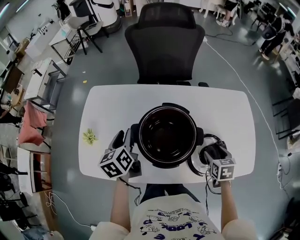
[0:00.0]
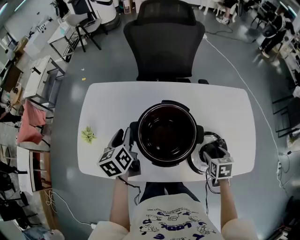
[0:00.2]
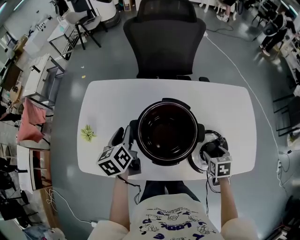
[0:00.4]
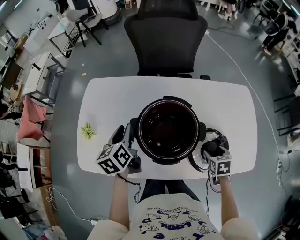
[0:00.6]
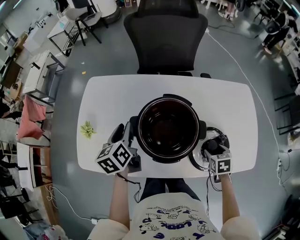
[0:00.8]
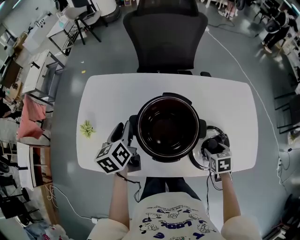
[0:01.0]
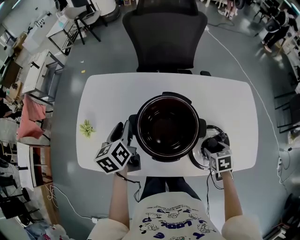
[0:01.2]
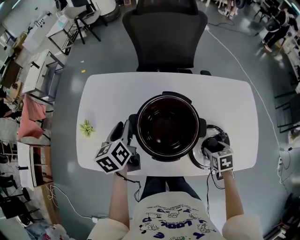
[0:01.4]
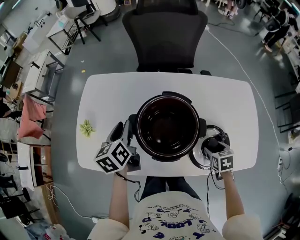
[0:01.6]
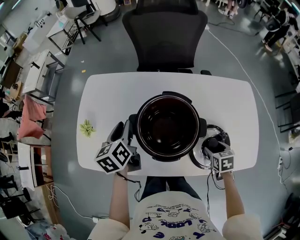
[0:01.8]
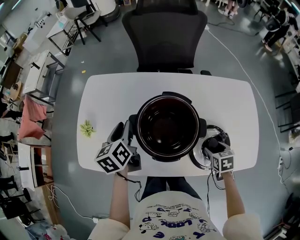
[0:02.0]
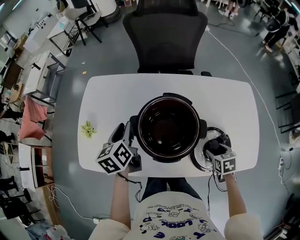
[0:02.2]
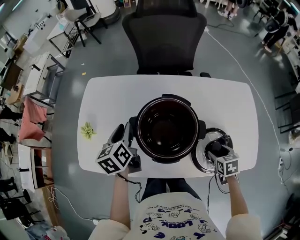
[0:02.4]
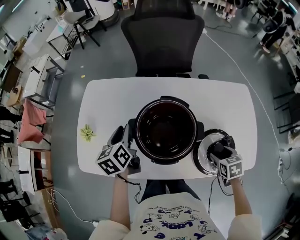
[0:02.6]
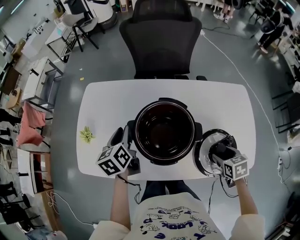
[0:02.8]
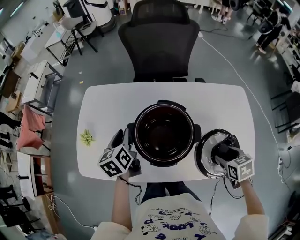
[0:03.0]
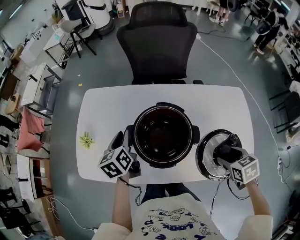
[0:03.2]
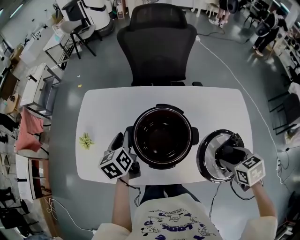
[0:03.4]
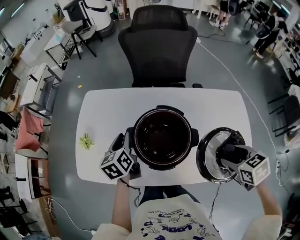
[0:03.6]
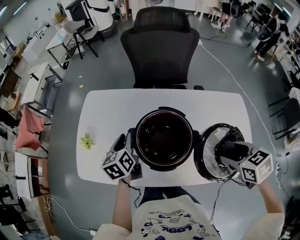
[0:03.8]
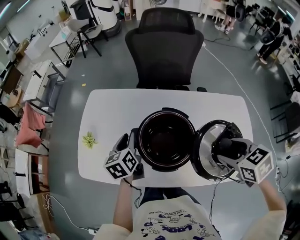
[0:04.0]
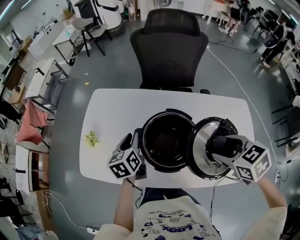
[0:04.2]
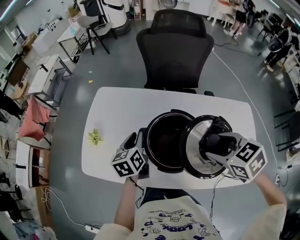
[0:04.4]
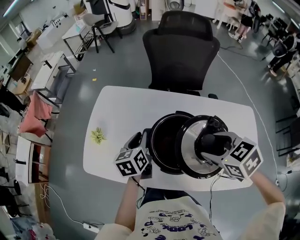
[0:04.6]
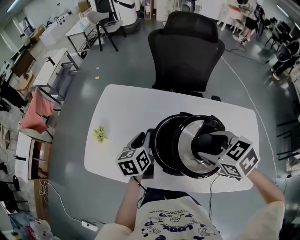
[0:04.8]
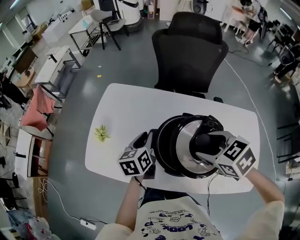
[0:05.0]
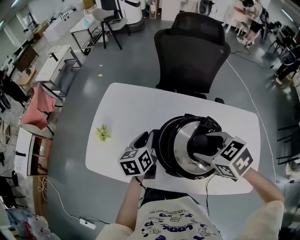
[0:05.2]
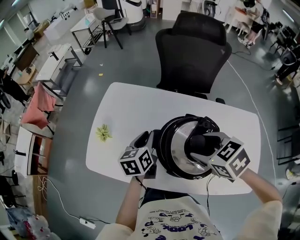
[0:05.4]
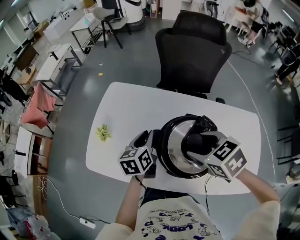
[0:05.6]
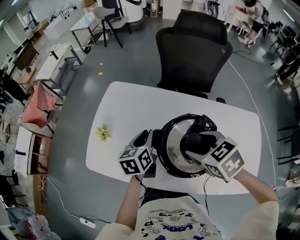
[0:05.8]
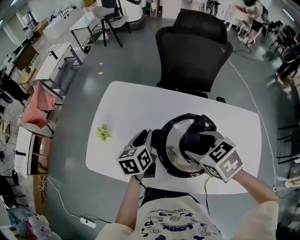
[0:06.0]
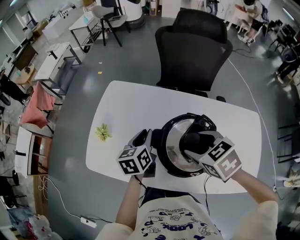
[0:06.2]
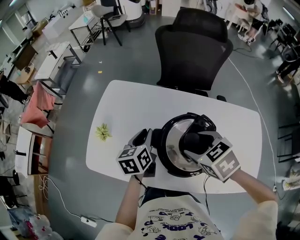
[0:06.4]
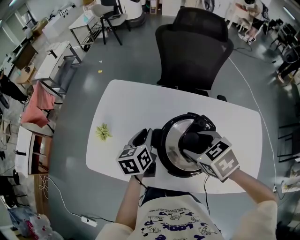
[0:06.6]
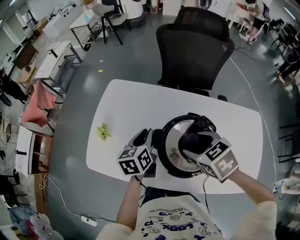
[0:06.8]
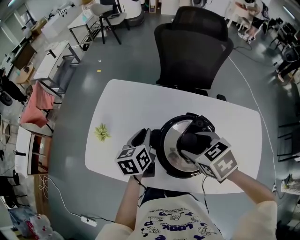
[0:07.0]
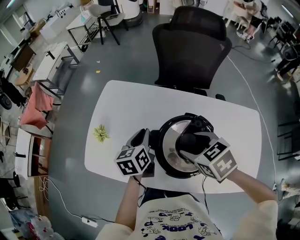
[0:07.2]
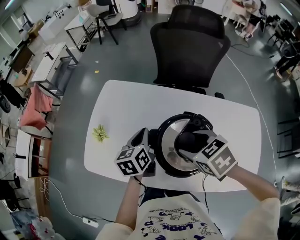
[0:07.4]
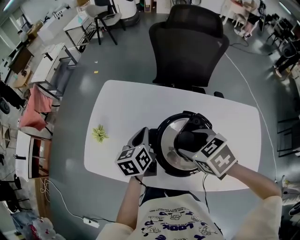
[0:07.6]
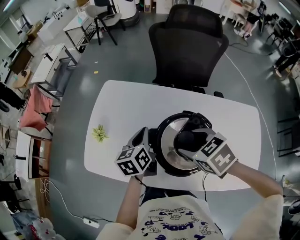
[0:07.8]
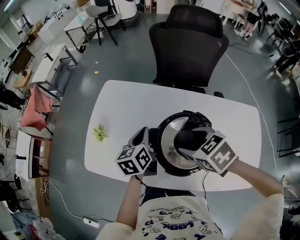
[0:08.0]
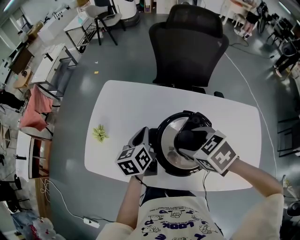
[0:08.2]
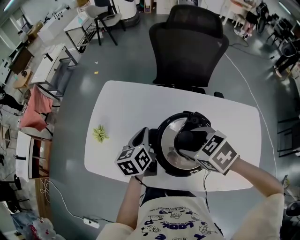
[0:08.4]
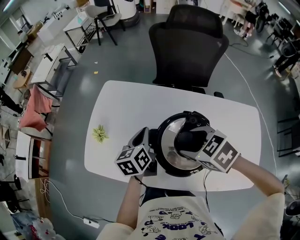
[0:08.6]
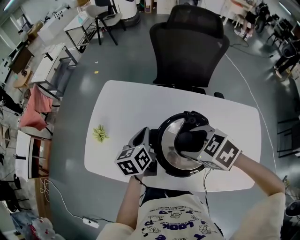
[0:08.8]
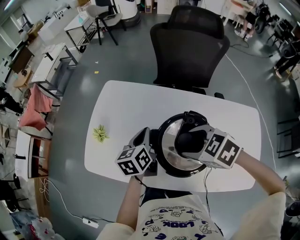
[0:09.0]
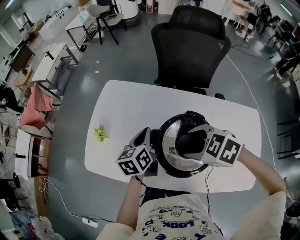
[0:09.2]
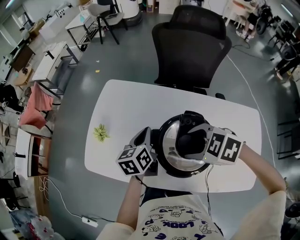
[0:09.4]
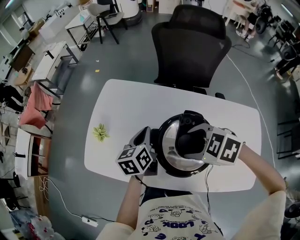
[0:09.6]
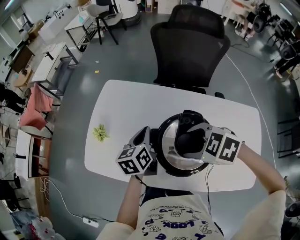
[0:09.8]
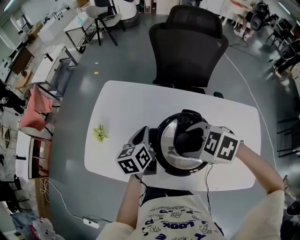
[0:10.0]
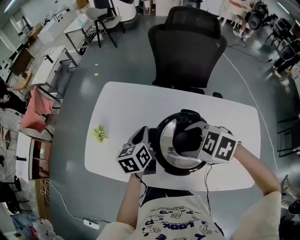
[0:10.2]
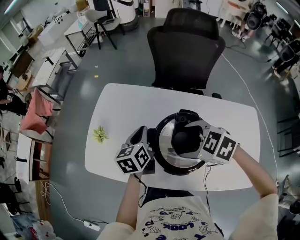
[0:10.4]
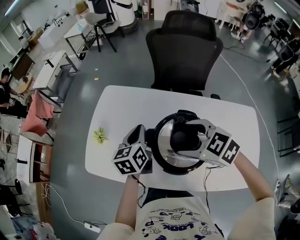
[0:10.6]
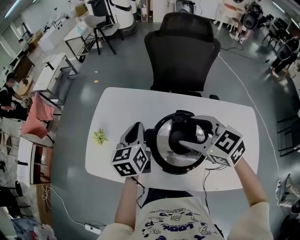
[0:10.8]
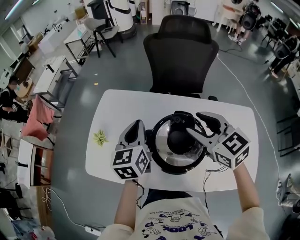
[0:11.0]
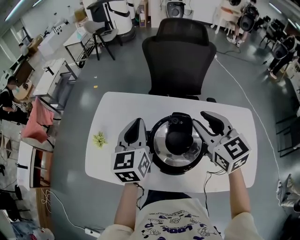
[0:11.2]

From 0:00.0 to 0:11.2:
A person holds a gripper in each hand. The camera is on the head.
From 0:00.0 to 0:01.6: The right gripper travels downward by roughly 5 cm.
From 0:01.6 to 0:03.2: The right gripper is displaced upward by about 15 cm.
From 0:03.2 to 0:04.8: The right gripper shifts some 25 cm to the left, forward and upward, and turns by about 30 degrees.
From 0:04.8 to 0:06.4: The right gripper moves roughly 5 cm.
From 0:06.4 to 0:08.0: Neither gripper changes place.
From 0:08.0 to 0:09.6: The right gripper swivels about 30 degrees.
From 0:09.6 to 0:11.2: The left gripper goes about 15 cm upward, and swivels about 30 degrees. The right gripper goes roughly 15 cm upward and to the right, angles its fingers upward, by roughly 40 degrees, and closes up.

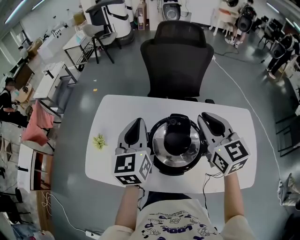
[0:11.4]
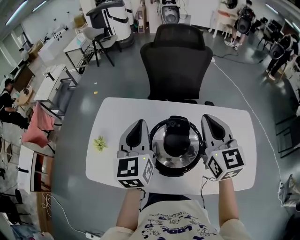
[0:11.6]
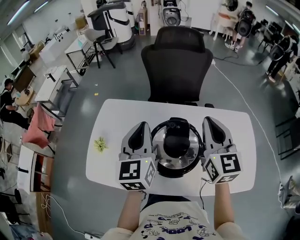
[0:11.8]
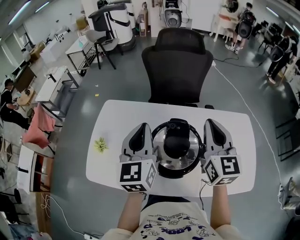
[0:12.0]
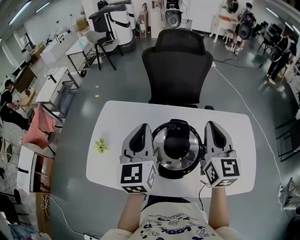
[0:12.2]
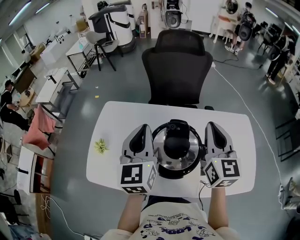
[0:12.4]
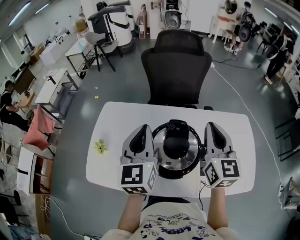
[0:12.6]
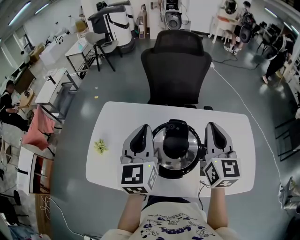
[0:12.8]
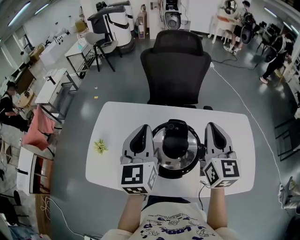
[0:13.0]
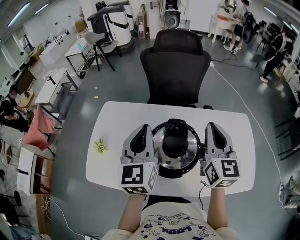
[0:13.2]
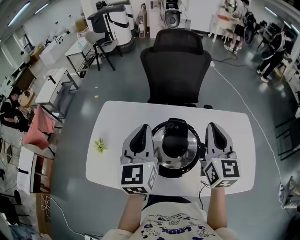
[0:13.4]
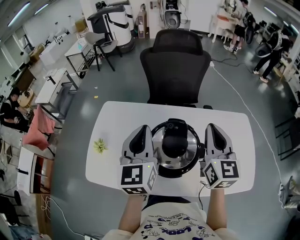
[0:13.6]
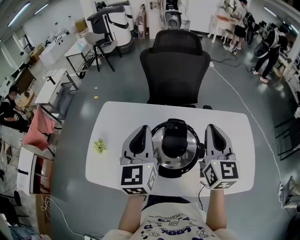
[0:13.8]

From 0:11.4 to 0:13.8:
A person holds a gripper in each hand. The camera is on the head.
From 0:11.4 to 0:12.6: The left gripper changes place by roughly 5 cm; the right gripper moves roughly 5 cm, and changes its angle by approximately 20 degrees.
From 0:12.6 to 0:13.8: The grippers make only small movements.

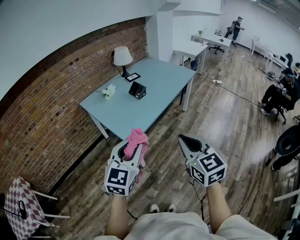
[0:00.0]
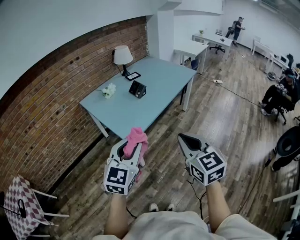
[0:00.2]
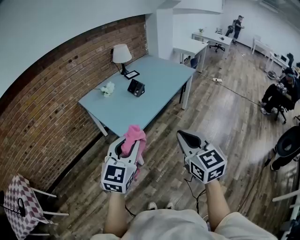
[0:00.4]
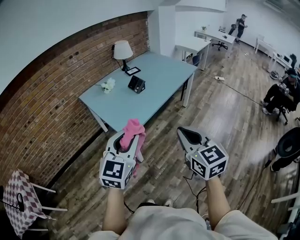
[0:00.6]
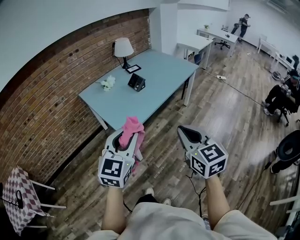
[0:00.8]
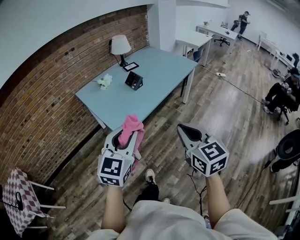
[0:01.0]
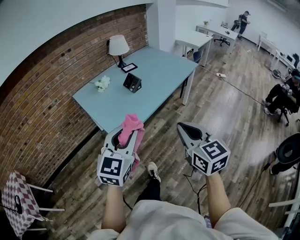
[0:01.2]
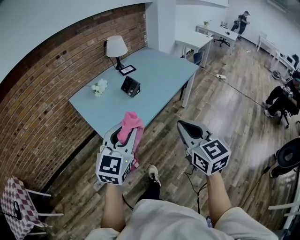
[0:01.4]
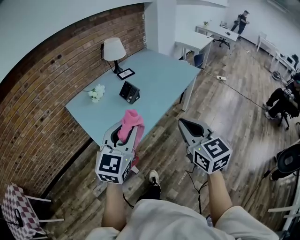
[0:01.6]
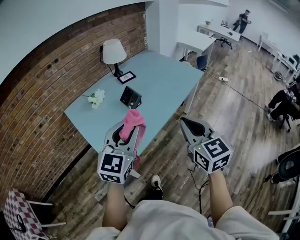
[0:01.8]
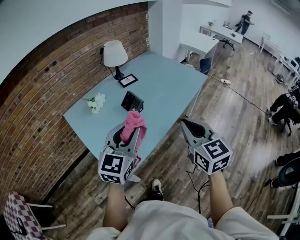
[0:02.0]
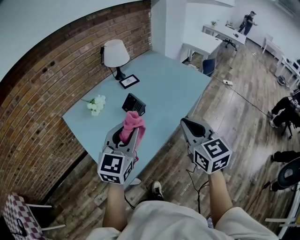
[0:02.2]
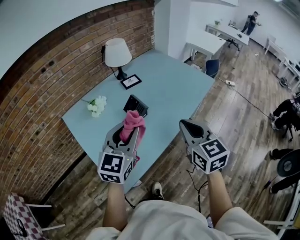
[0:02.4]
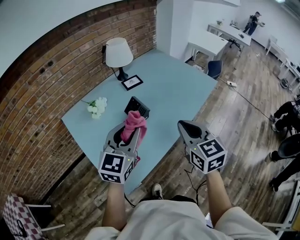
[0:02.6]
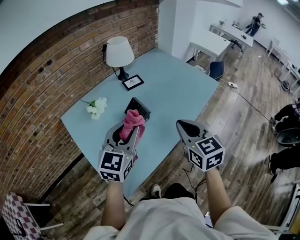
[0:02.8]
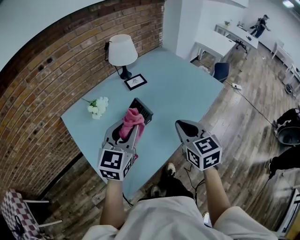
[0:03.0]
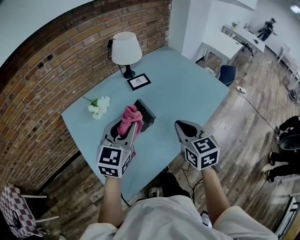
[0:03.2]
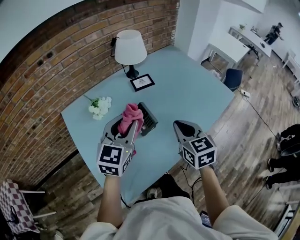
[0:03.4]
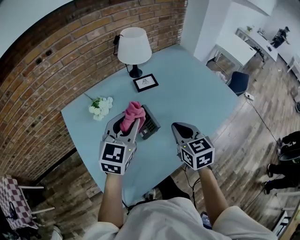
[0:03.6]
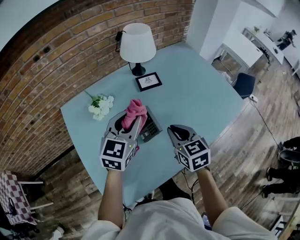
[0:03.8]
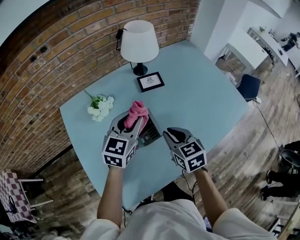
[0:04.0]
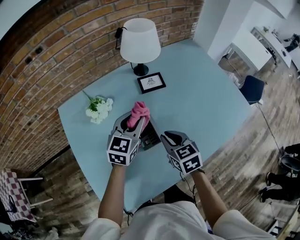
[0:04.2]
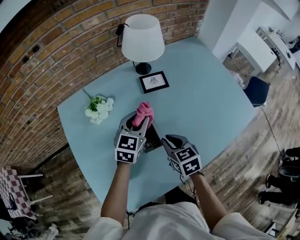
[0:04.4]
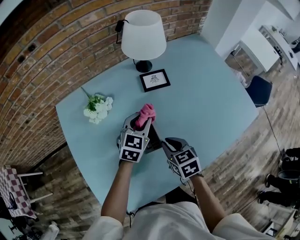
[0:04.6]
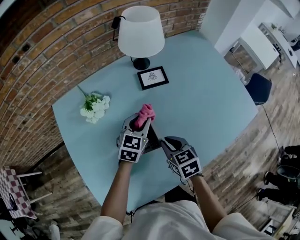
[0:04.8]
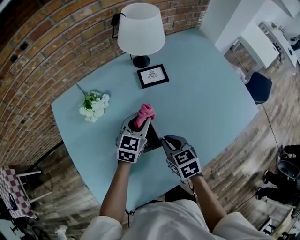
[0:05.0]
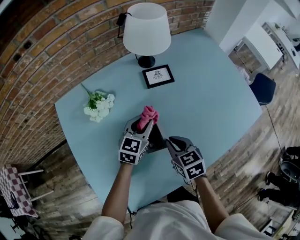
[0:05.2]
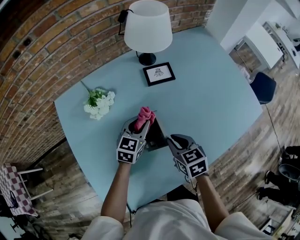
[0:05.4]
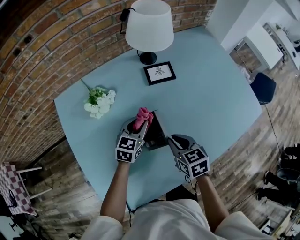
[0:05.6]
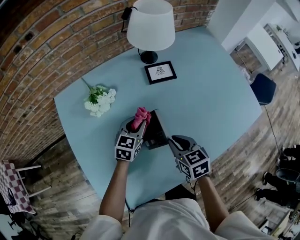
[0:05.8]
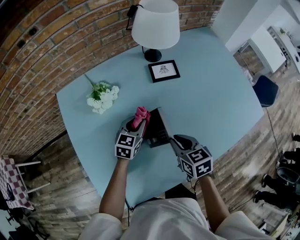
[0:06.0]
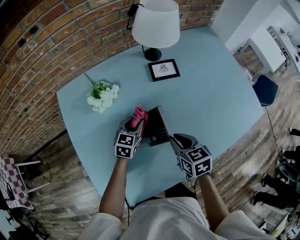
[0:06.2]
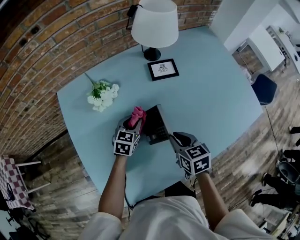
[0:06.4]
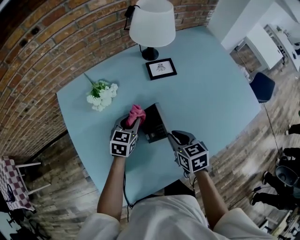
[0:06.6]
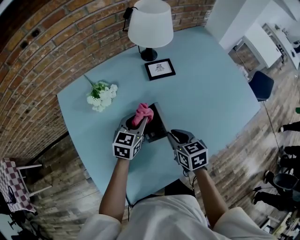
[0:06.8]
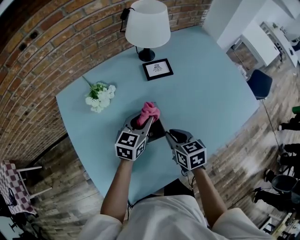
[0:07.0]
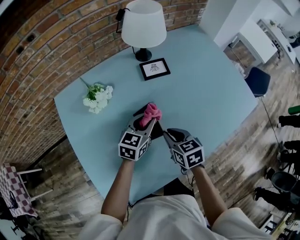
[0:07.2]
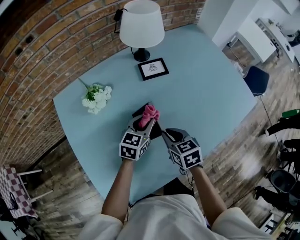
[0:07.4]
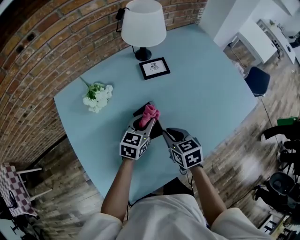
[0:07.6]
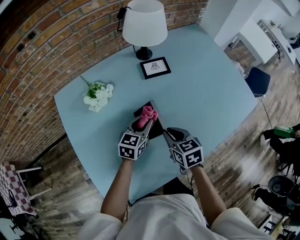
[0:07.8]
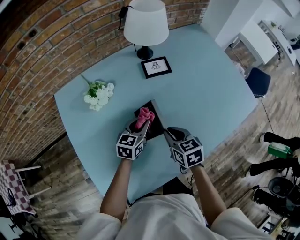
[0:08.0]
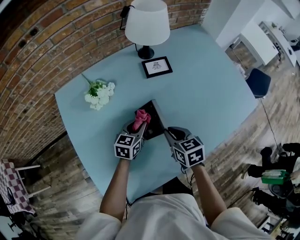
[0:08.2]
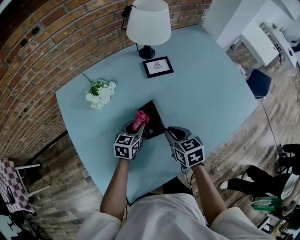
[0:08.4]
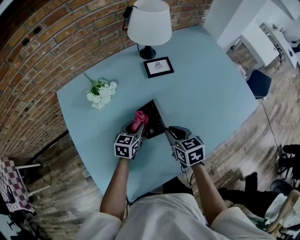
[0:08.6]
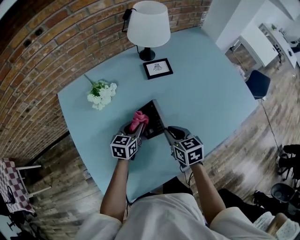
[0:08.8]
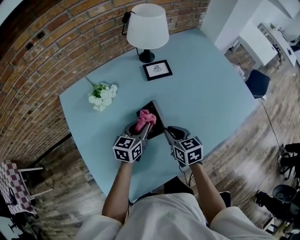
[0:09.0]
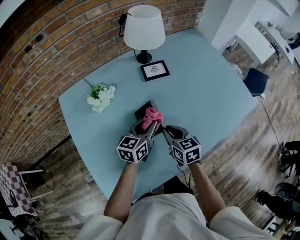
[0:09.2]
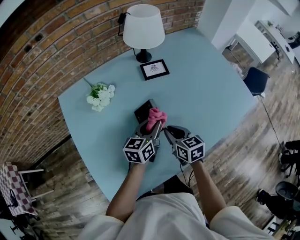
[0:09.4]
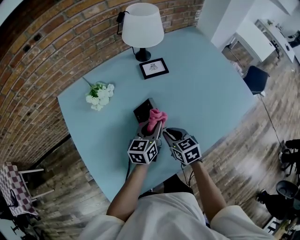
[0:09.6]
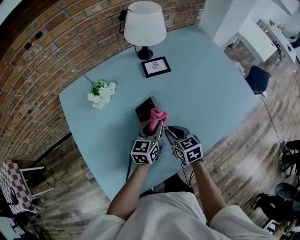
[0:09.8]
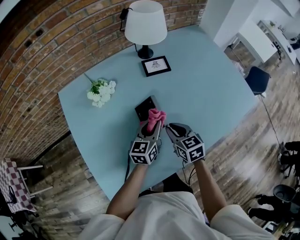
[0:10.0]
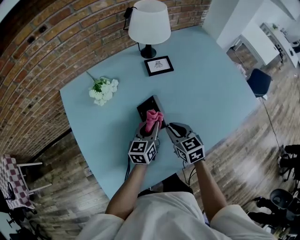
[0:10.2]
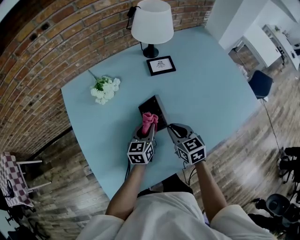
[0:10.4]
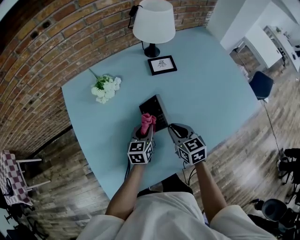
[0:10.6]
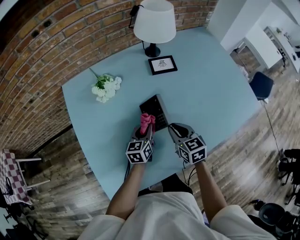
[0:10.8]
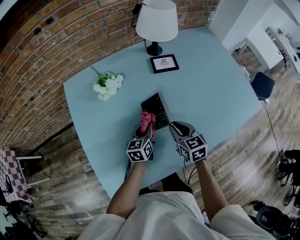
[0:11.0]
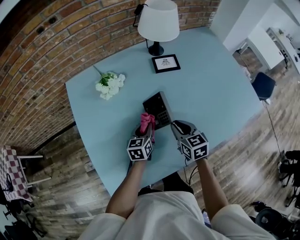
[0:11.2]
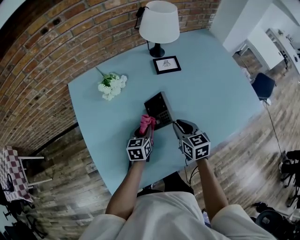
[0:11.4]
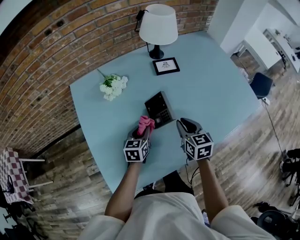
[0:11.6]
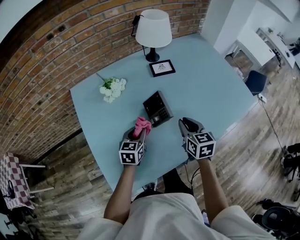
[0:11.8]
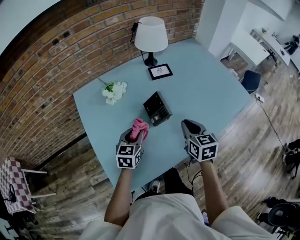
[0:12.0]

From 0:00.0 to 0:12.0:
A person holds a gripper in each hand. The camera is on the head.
From 0:00.0 to 0:01.6: Both grippers move forward, some 25 cm.
From 0:01.6 to 0:03.0: The grippers both shift forward by about 30 cm.
From 0:03.0 to 0:04.4: Both grippers travel together forward and downward, about 30 cm. The right gripper rotates approximately 30 degrees.
From 0:04.4 to 0:06.0: The left gripper goes roughly 15 cm downward and to the left.
From 0:06.0 to 0:07.6: The left gripper shifts roughly 10 cm to the right and upward.
From 0:09.0 to 0:10.4: The left gripper moves about 5 cm.
From 0:10.4 to 0:12.0: The right gripper moves upward and backward, some 10 cm. Meanwhile the left gripper travels to the left, backward and upward by approximately 15 cm.
